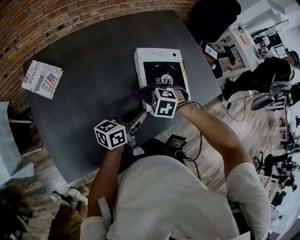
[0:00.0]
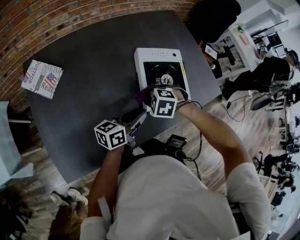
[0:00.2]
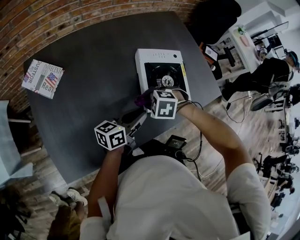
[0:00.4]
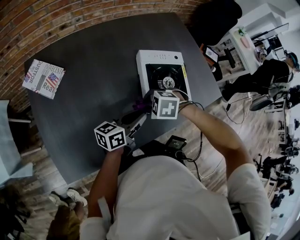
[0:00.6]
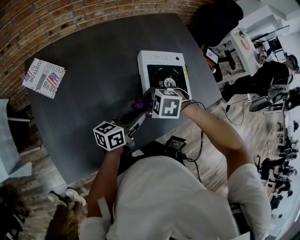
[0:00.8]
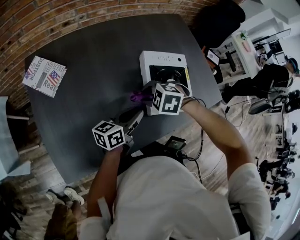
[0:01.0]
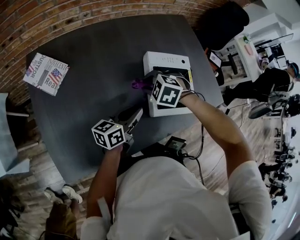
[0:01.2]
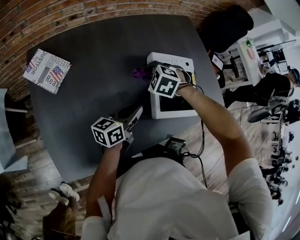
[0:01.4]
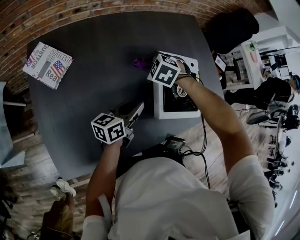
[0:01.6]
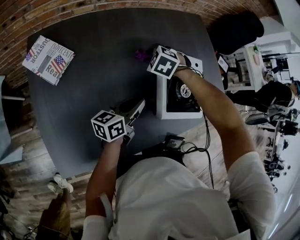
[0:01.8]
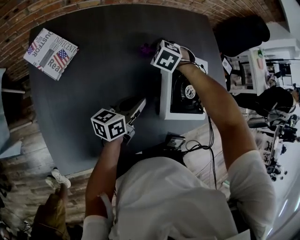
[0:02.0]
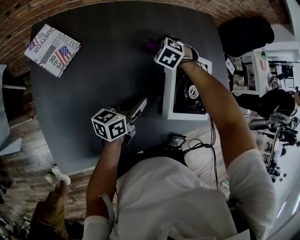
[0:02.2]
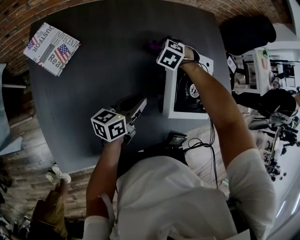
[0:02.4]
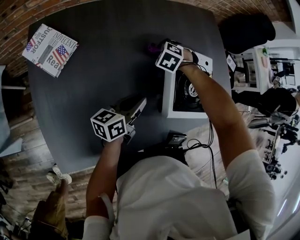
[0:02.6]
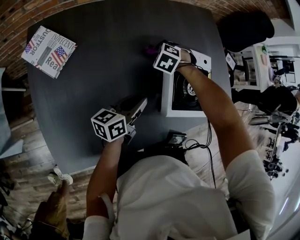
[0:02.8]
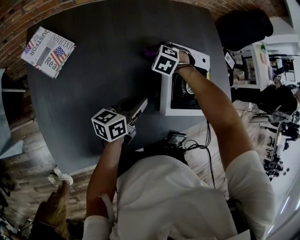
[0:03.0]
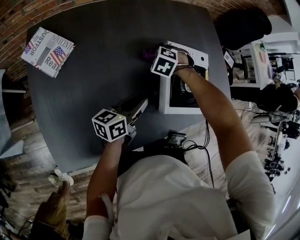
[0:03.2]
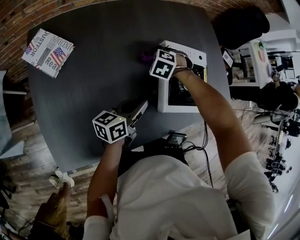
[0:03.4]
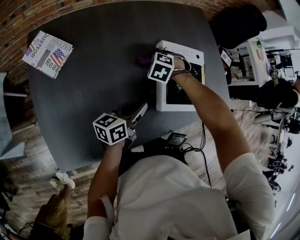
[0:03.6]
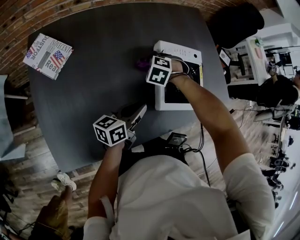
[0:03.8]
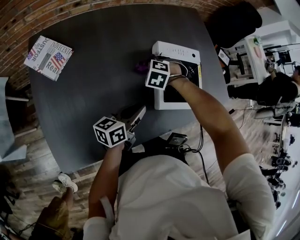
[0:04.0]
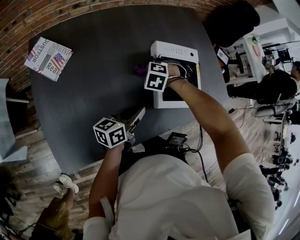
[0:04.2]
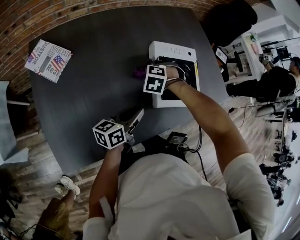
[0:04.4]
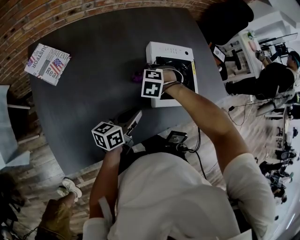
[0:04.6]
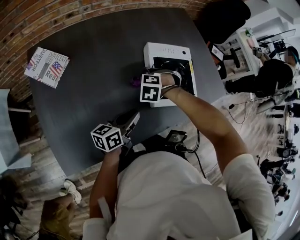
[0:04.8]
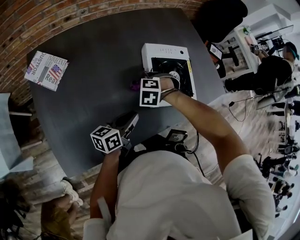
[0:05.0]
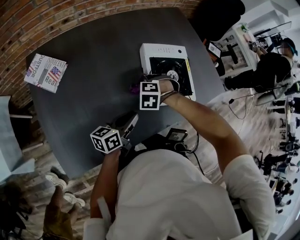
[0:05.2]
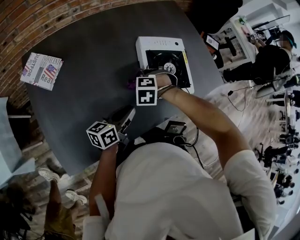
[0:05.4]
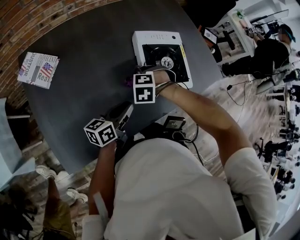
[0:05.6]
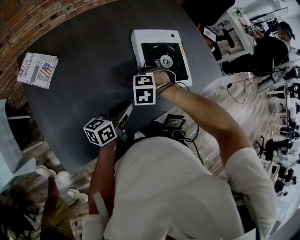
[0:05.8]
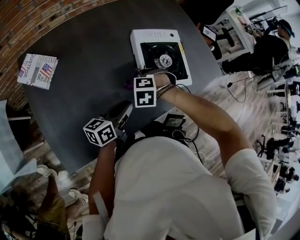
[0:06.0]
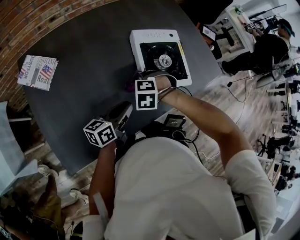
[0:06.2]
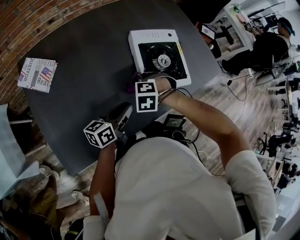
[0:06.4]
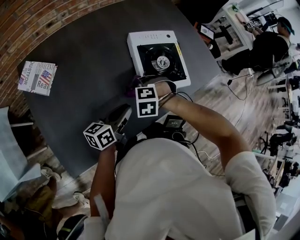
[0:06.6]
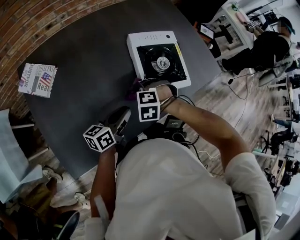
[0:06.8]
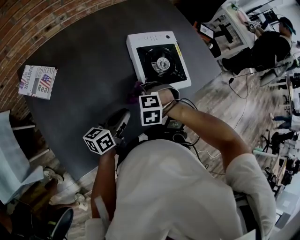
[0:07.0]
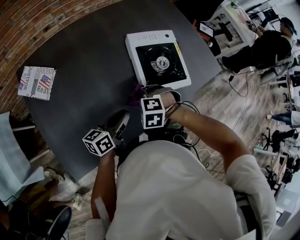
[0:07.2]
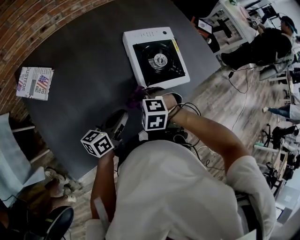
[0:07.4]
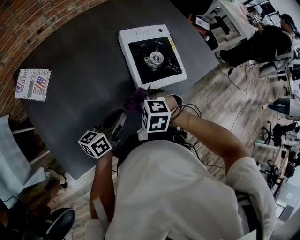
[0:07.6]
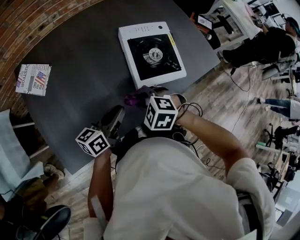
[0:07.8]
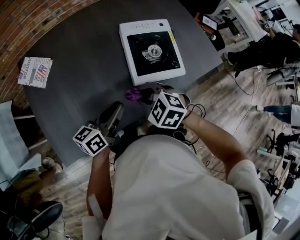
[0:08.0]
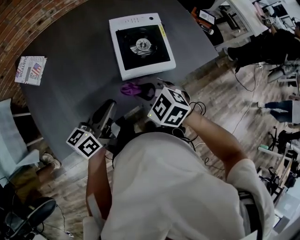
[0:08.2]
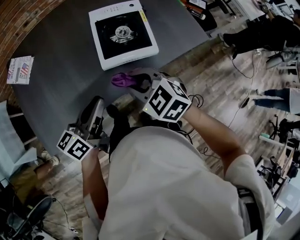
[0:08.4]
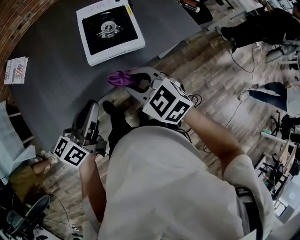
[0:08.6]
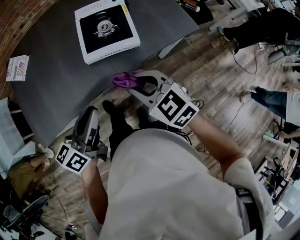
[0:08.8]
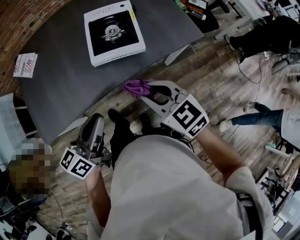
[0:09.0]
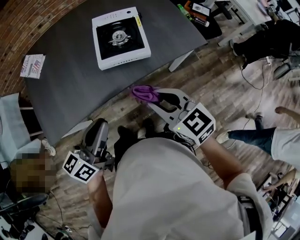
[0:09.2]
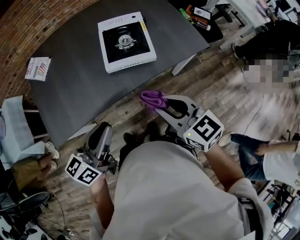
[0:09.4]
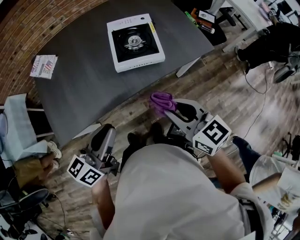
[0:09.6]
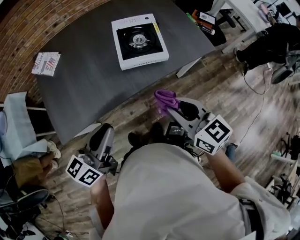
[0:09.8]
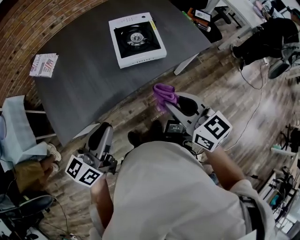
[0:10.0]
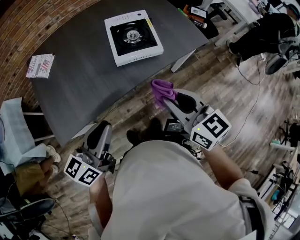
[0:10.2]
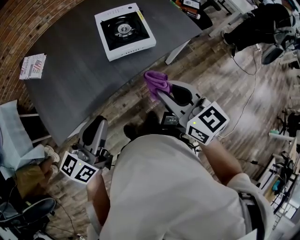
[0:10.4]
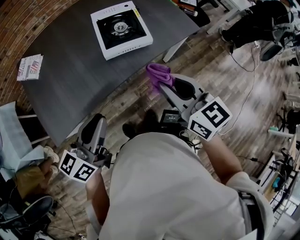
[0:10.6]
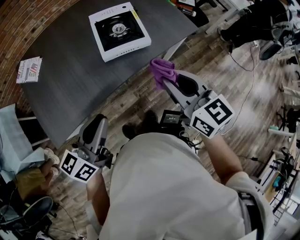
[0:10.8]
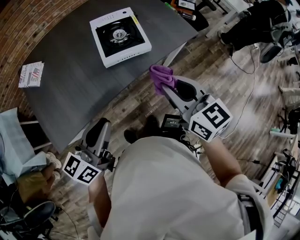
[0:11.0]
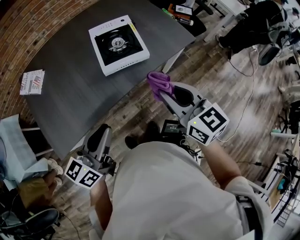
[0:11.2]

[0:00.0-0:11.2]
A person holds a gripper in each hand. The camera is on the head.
0:00.0 to 0:01.6: The right gripper ends up some 20 cm from where it was, while the left gripper changes place by about 10 cm.
0:01.6 to 0:03.2: The right gripper is displaced downward by some 5 cm.
0:03.2 to 0:04.8: The left gripper changes place by roughly 10 cm, while the right gripper moves about 15 cm.
0:04.8 to 0:06.4: The right gripper ends up approximately 10 cm from where it was.
0:06.4 to 0:08.0: The right gripper changes place by some 15 cm, and turns by approximately 30 degrees. Meanwhile the left gripper travels upward by some 5 cm.
0:08.0 to 0:09.6: The left gripper shifts approximately 25 cm backward and upward. Meanwhile the right gripper heads backward, to the right and upward, covering about 30 cm, and points its fingers approximately 40 degrees further upward.
0:09.6 to 0:11.2: The grippers make only small movements.

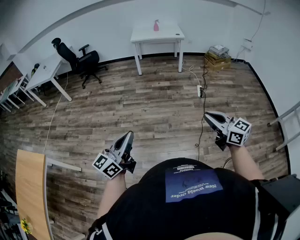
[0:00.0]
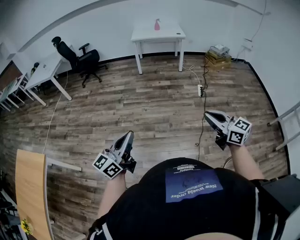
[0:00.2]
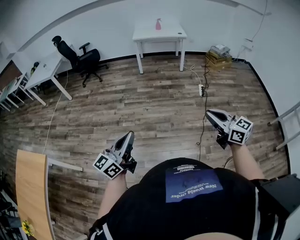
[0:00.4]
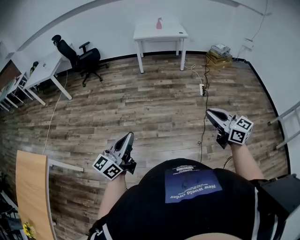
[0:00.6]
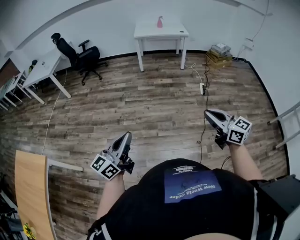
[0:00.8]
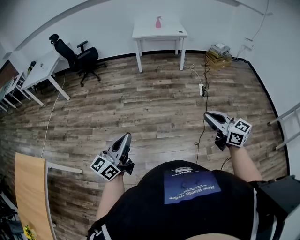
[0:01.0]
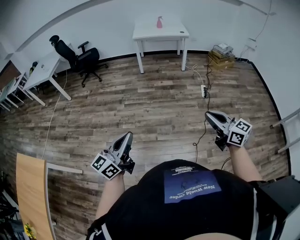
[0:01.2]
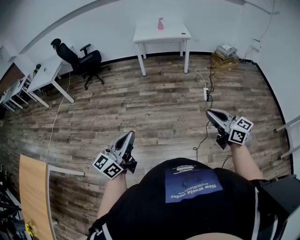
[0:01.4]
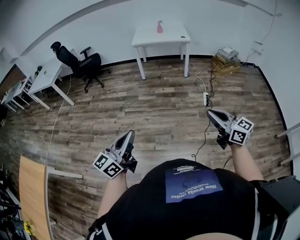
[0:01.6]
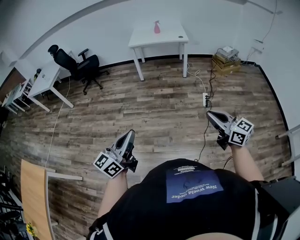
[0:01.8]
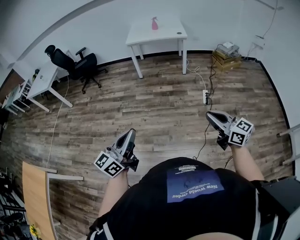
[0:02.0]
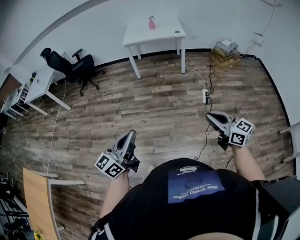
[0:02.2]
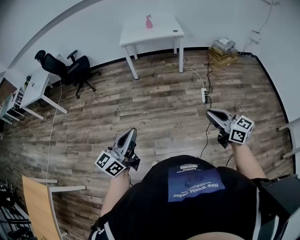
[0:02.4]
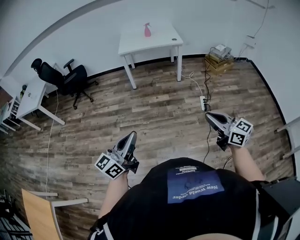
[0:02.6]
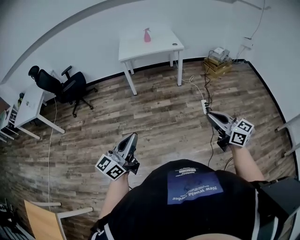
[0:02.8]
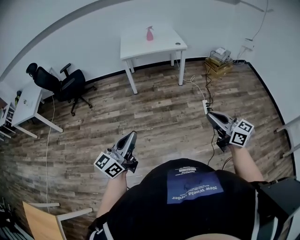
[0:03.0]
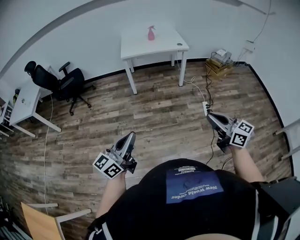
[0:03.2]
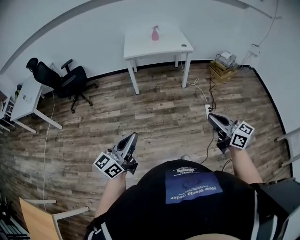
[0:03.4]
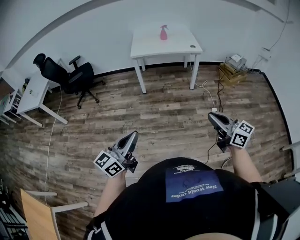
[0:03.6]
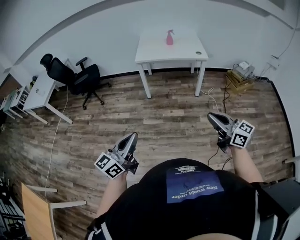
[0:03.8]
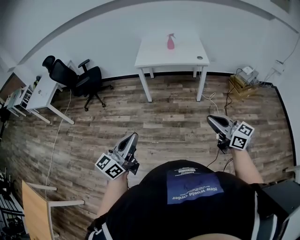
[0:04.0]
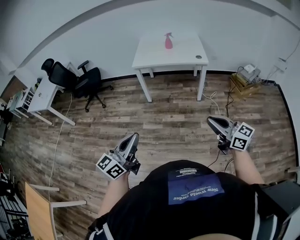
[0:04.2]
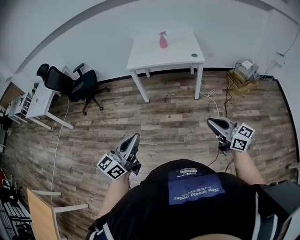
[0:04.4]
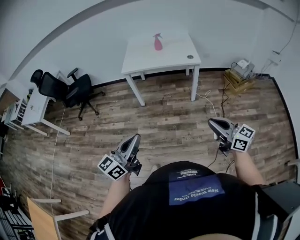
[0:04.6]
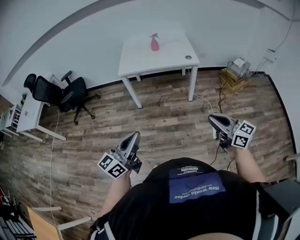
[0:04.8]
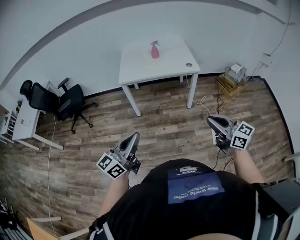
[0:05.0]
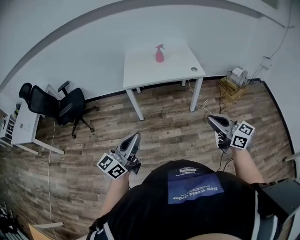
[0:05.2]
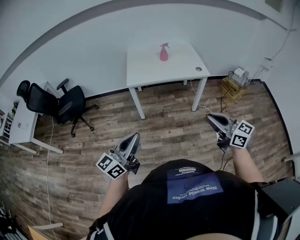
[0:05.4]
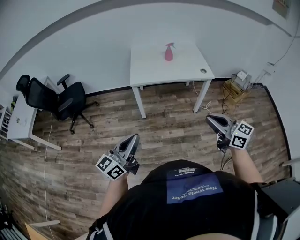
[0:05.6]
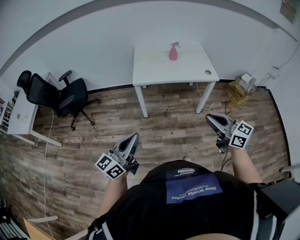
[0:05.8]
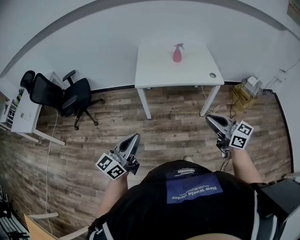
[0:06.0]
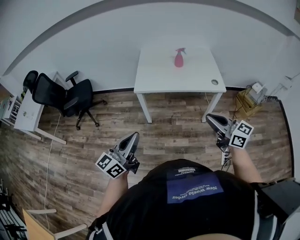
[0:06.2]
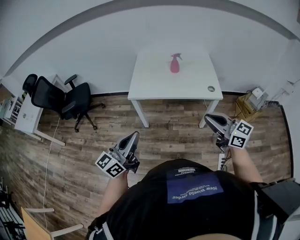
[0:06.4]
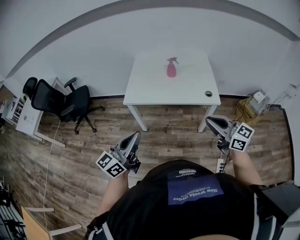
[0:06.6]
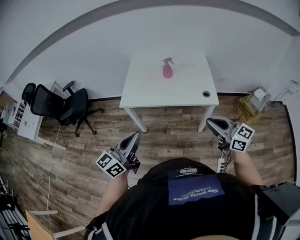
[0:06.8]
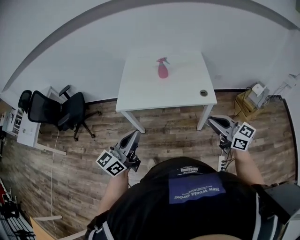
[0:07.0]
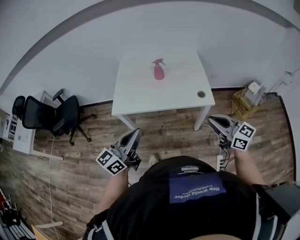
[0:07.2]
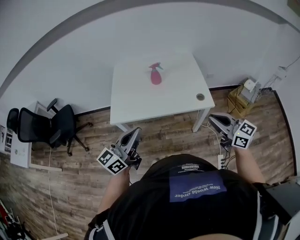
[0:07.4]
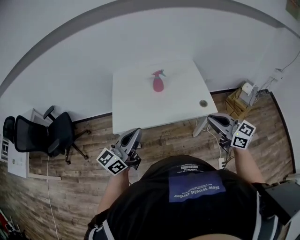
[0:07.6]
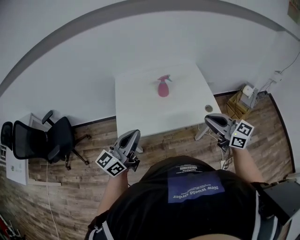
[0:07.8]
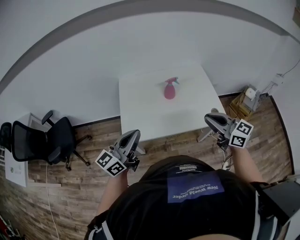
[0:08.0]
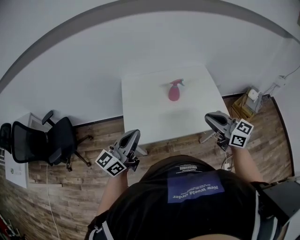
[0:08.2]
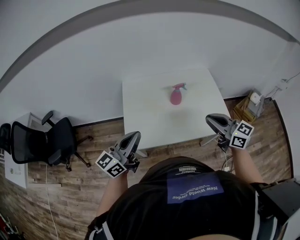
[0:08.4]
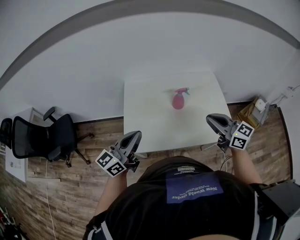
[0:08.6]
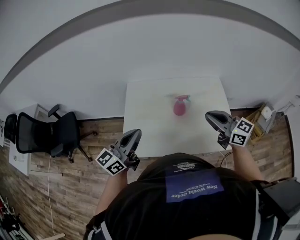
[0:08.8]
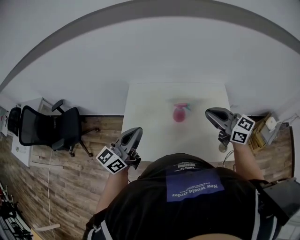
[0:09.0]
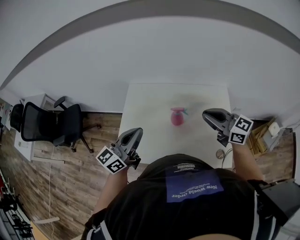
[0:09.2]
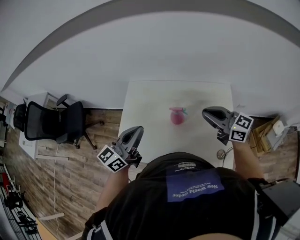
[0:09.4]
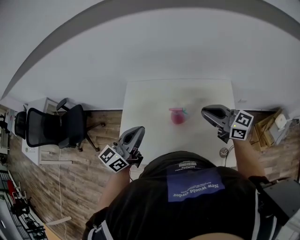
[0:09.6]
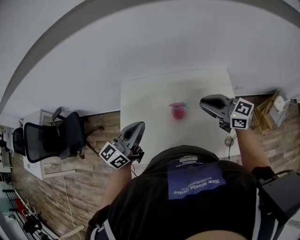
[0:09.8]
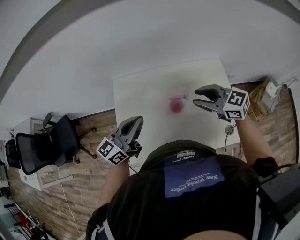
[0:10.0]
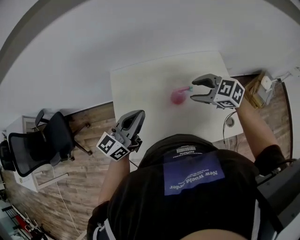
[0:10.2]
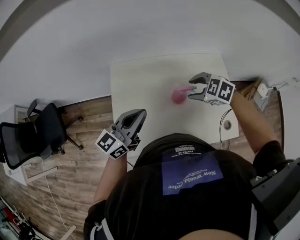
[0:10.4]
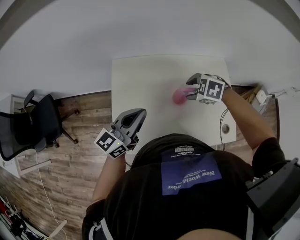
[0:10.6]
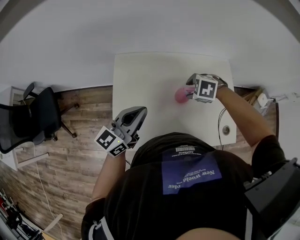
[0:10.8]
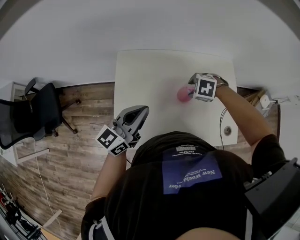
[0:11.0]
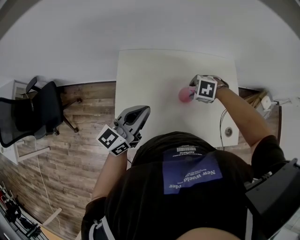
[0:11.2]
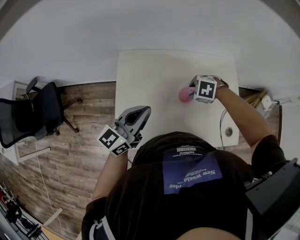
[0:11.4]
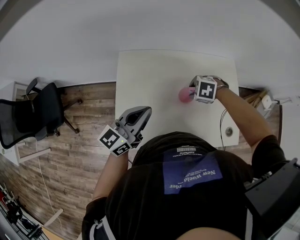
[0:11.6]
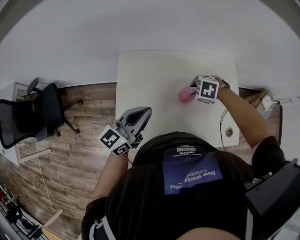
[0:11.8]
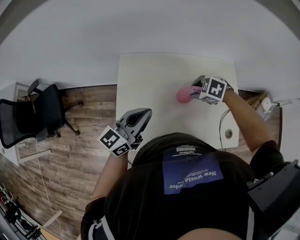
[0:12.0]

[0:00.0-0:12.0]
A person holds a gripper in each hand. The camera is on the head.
0:00.0 to 0:01.6: The two grippers go some 20 cm forward and to the right.
0:01.6 to 0:03.0: The left gripper heads forward, covering roughly 30 cm. Meanwhile the right gripper travels forward and to the left by about 25 cm.
0:03.0 to 0:04.4: Both grippers move forward and to the right, about 30 cm.
0:04.4 to 0:06.0: Both grippers move forward and to the left, about 35 cm.
0:06.0 to 0:07.6: The grippers both shift forward and to the right by some 35 cm.
0:07.6 to 0:09.0: The grippers both shift forward by some 30 cm.
0:09.0 to 0:10.4: The left gripper shifts approximately 15 cm forward and downward; the right gripper shifts approximately 20 cm downward and forward, tilts its fingers about 60 degrees downward, and opens.
0:10.4 to 0:12.0: The right gripper goes approximately 5 cm downward.

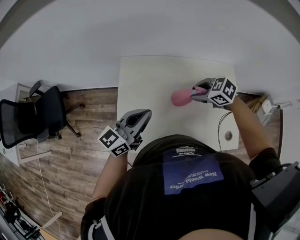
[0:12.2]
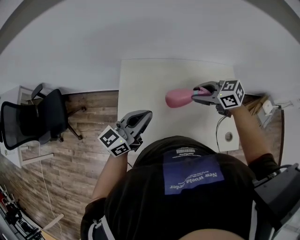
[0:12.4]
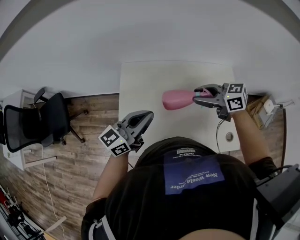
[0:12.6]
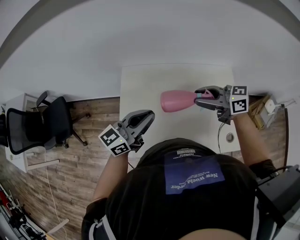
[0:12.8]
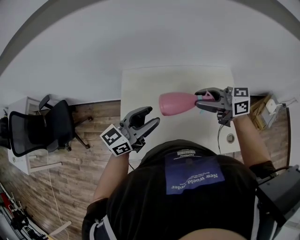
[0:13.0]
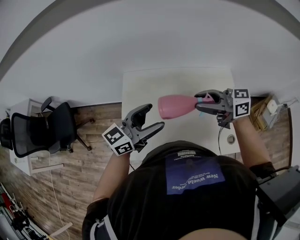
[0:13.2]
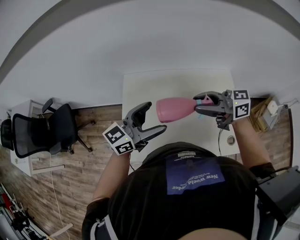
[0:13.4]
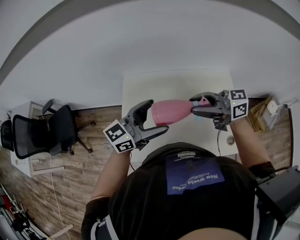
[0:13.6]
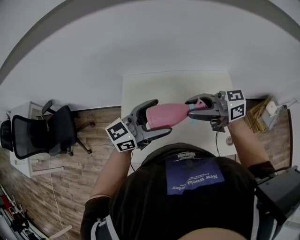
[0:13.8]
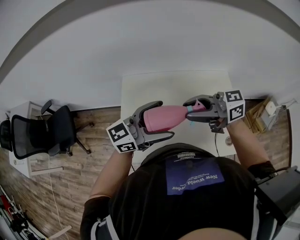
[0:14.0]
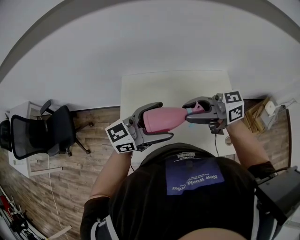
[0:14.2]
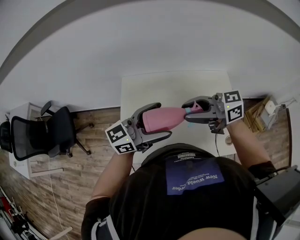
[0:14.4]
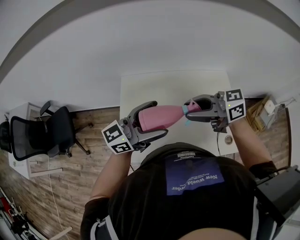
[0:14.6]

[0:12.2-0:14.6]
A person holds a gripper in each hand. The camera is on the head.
0:12.2 to 0:13.4: The right gripper heads upward, covering about 20 cm, and tips its fingers upward by approximately 50 degrees. Meanwhile the left gripper shifts roughly 5 cm upward, and opens up.
0:13.4 to 0:14.6: The grippers make only small movements.
